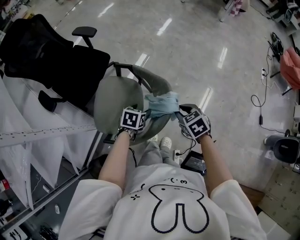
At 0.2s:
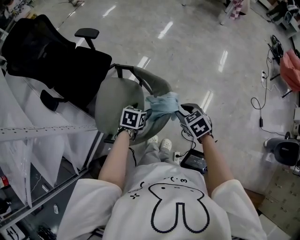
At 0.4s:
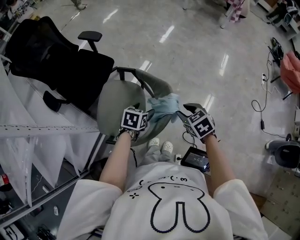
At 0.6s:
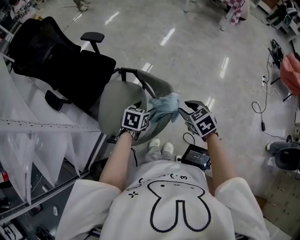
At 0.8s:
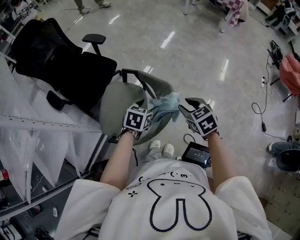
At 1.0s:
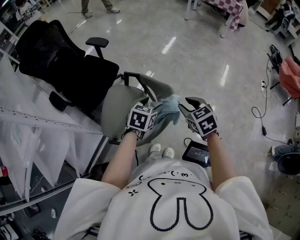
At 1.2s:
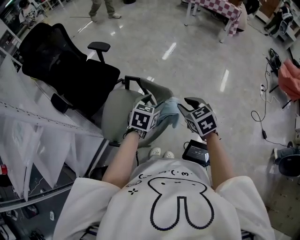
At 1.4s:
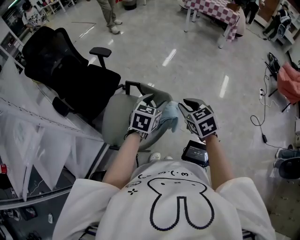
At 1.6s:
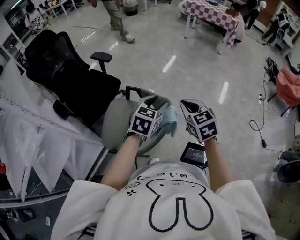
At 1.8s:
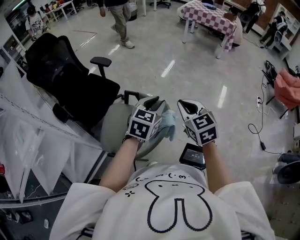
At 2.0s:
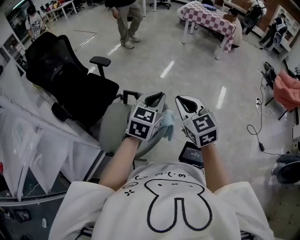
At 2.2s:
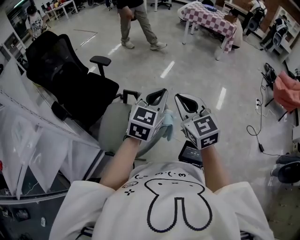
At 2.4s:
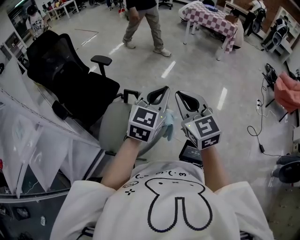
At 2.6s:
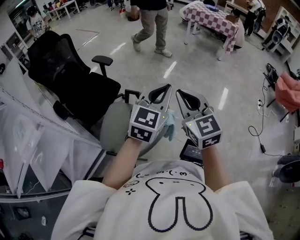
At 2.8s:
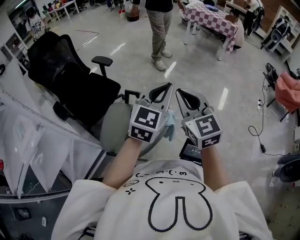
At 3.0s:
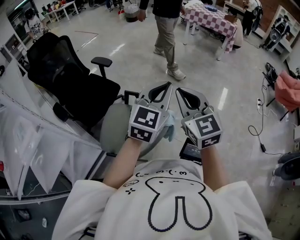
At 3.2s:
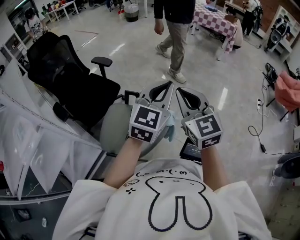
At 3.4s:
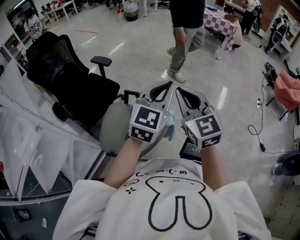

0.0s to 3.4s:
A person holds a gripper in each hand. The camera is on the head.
0.0s to 1.6s: The grippers both shift upward by approximately 20 cm. The left gripper changes its angle by approximately 30 degrees. The right gripper swivels roughly 30 degrees.
1.6s to 3.4s: The two grippers go some 15 cm upward. The right gripper turns by some 30 degrees, while the left gripper rotates some 30 degrees, and closes up.

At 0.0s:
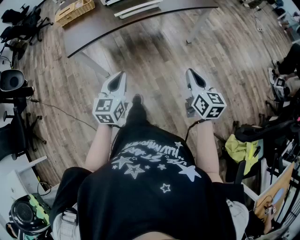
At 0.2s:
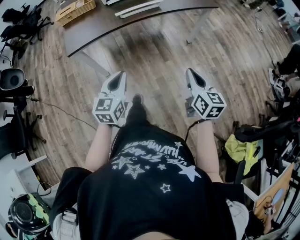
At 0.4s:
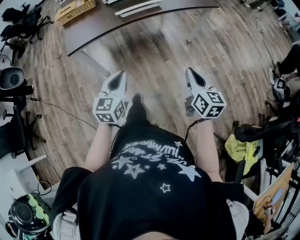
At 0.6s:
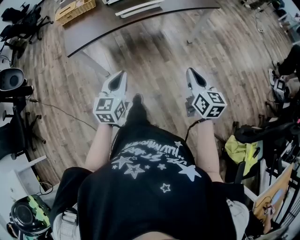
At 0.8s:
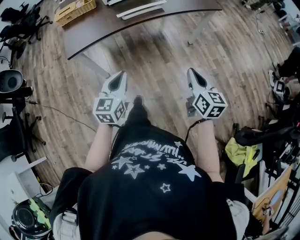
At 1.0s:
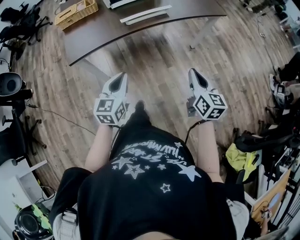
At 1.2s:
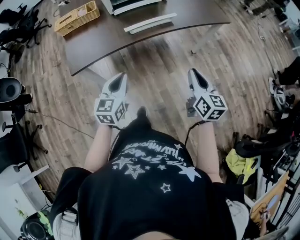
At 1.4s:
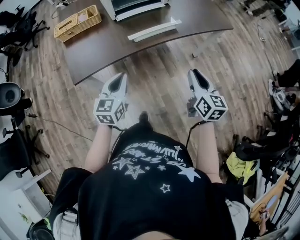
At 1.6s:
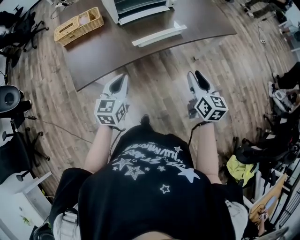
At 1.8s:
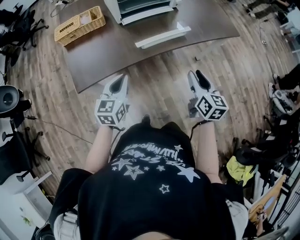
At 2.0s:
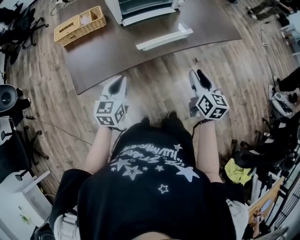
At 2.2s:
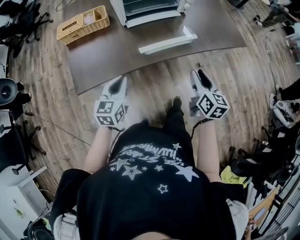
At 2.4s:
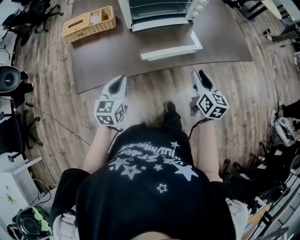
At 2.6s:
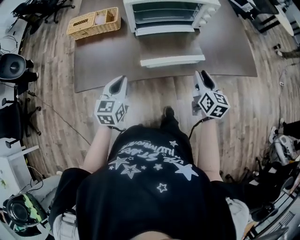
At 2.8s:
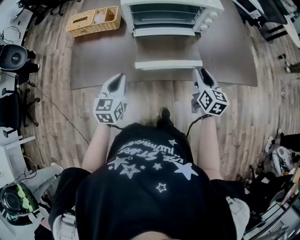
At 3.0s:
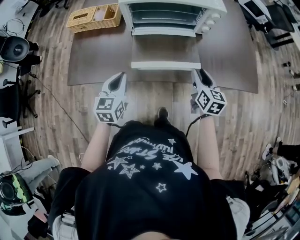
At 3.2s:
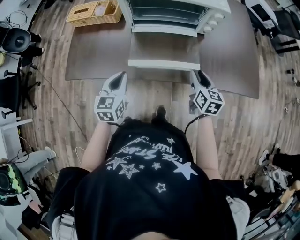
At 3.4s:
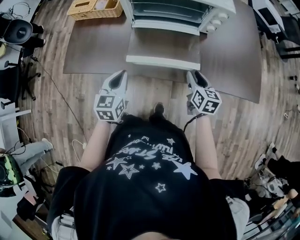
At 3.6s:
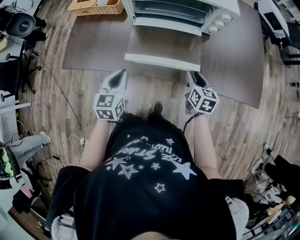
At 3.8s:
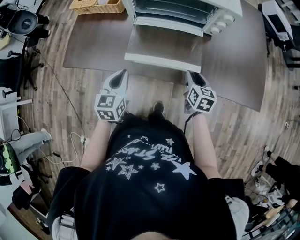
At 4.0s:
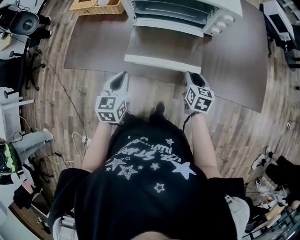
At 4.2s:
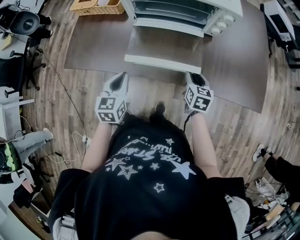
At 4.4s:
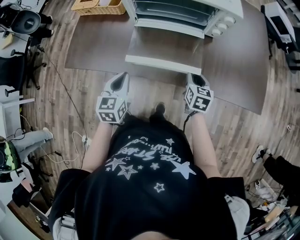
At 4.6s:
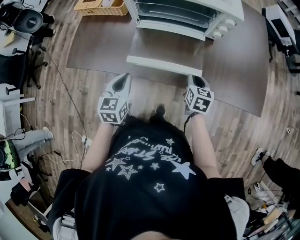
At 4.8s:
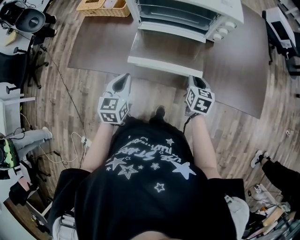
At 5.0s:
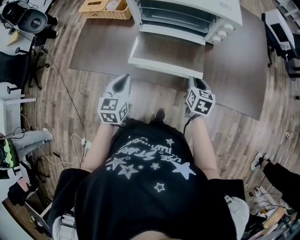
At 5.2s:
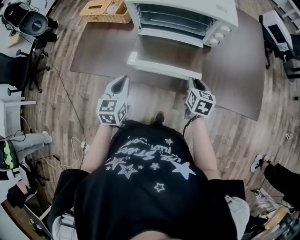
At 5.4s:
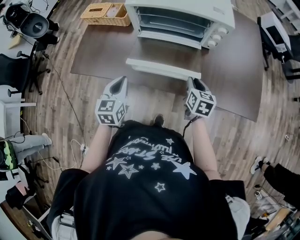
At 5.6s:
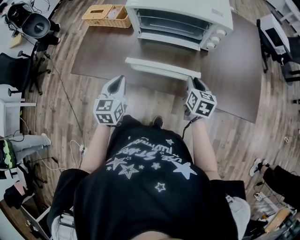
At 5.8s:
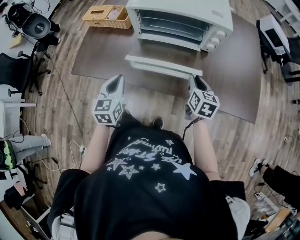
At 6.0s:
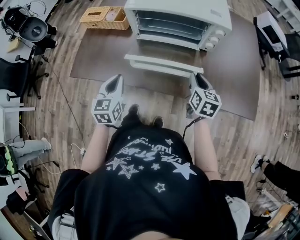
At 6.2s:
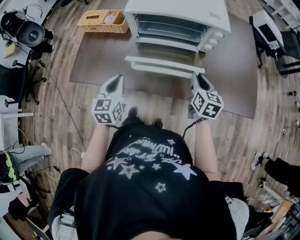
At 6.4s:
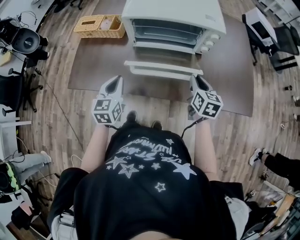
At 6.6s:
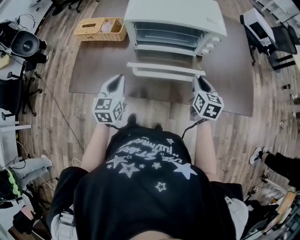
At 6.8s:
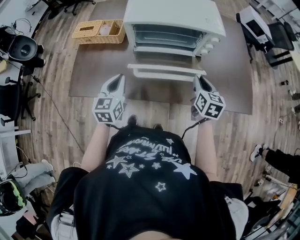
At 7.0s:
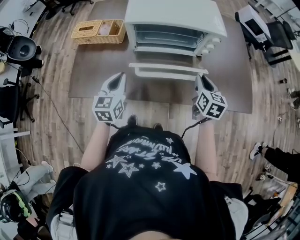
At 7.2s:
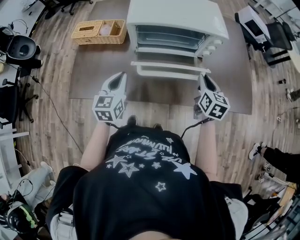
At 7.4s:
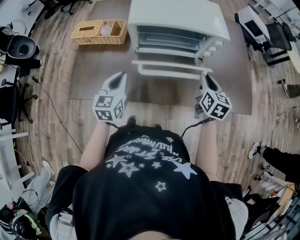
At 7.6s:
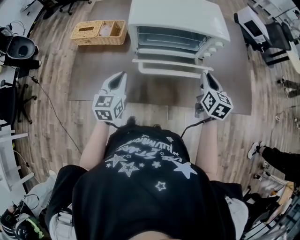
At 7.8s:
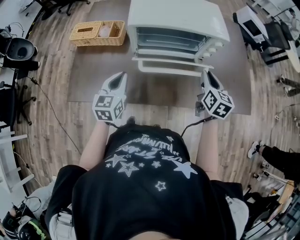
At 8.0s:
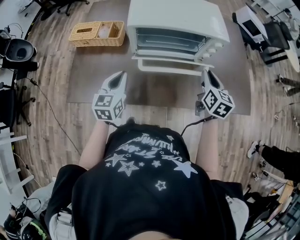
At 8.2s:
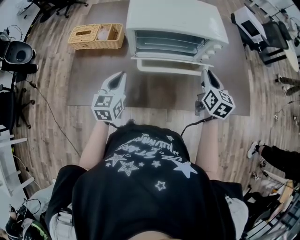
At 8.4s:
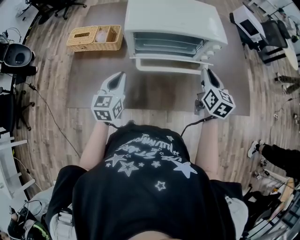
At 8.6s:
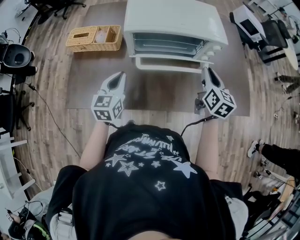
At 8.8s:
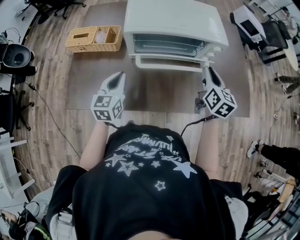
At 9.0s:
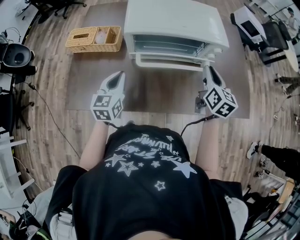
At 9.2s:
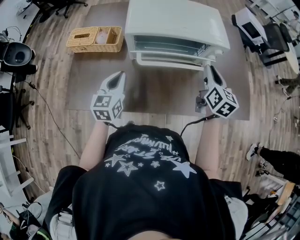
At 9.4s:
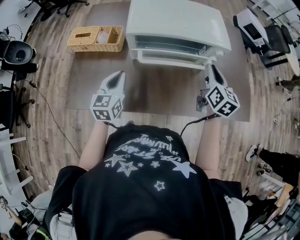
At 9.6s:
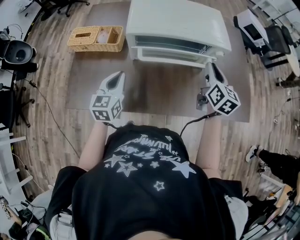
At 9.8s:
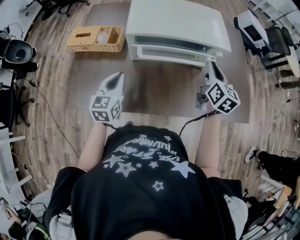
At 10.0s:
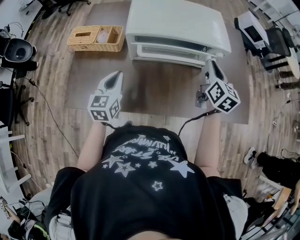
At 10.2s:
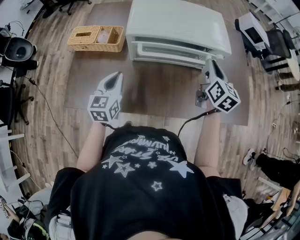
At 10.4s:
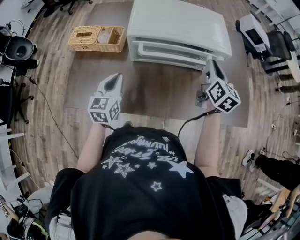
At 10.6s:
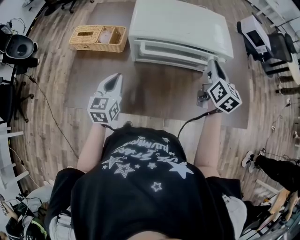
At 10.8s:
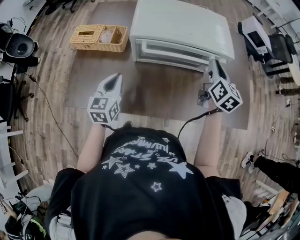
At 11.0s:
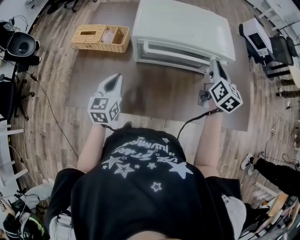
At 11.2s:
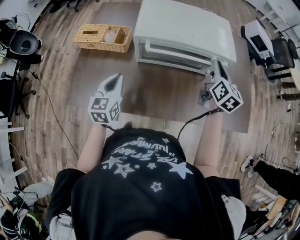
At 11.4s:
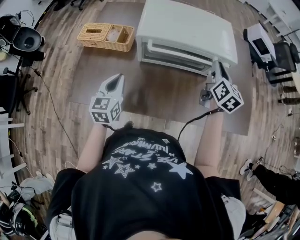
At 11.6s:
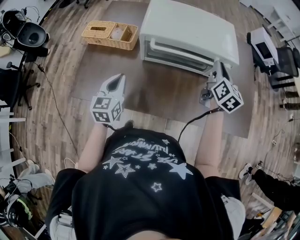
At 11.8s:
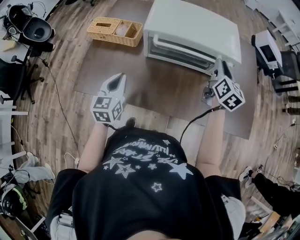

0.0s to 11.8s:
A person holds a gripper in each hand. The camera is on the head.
0.0s to 1.4s: Both grippers travel together forward and to the left, roughly 20 cm.
1.4s to 3.0s: The left gripper heads forward, covering approximately 20 cm, and rotates some 30 degrees. Meanwhile the right gripper is displaced forward by roughly 35 cm, and rotates about 20 degrees.
3.0s to 4.4s: The left gripper shifts by approximately 5 cm. Meanwhile the right gripper heads downward, covering some 10 cm.
4.4s to 6.0s: The left gripper goes roughly 5 cm upward; the right gripper goes roughly 10 cm upward.
6.0s to 7.4s: The left gripper goes approximately 10 cm forward; the right gripper shifts by roughly 5 cm.
7.4s to 8.8s: The right gripper is displaced forward by some 5 cm.
8.8s to 10.4s: The right gripper travels forward by about 5 cm.
10.4s to 11.8s: The left gripper moves backward, about 5 cm.

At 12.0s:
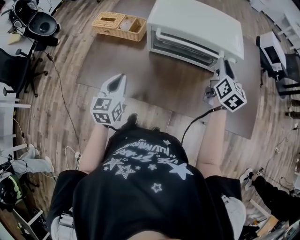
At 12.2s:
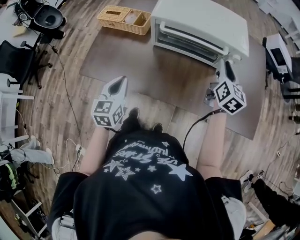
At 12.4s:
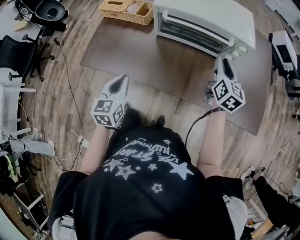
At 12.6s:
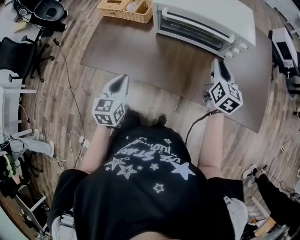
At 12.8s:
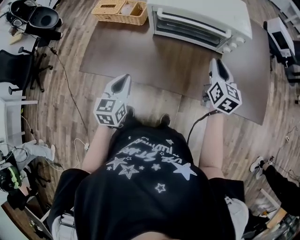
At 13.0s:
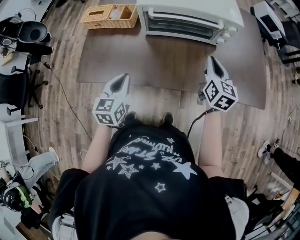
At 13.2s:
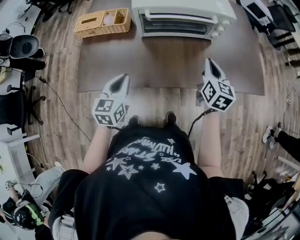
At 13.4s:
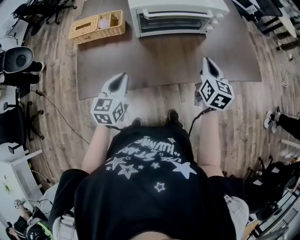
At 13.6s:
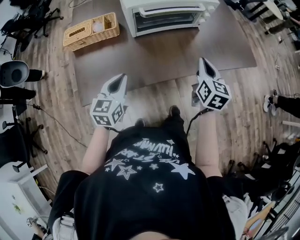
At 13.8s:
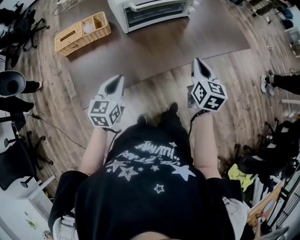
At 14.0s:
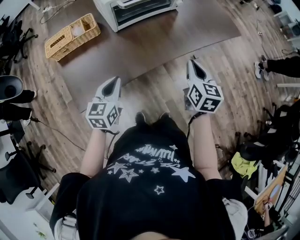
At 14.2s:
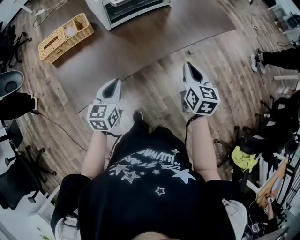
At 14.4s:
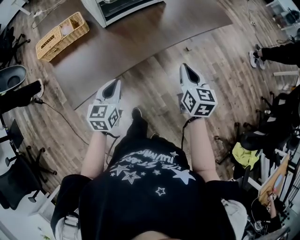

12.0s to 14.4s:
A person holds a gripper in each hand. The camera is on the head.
12.0s to 13.2s: The right gripper is displaced backward, downward and to the left by about 15 cm, and closes.
13.2s to 14.4s: The left gripper changes place by about 10 cm, and rotates roughly 30 degrees, while the right gripper moves approximately 25 cm, and swivels approximately 20 degrees.

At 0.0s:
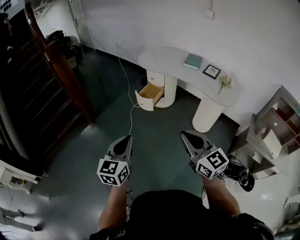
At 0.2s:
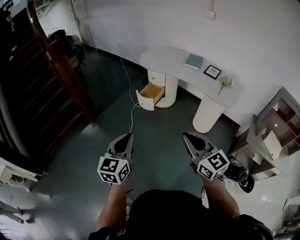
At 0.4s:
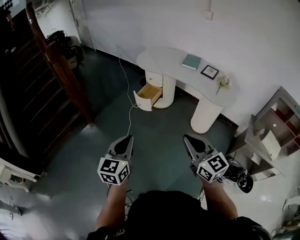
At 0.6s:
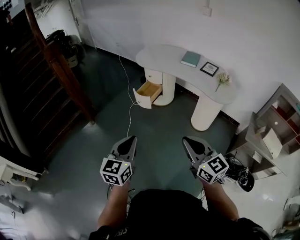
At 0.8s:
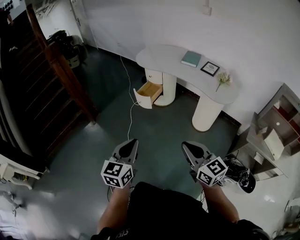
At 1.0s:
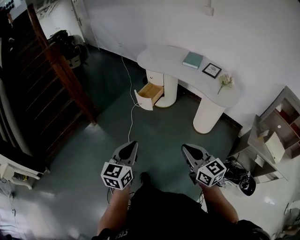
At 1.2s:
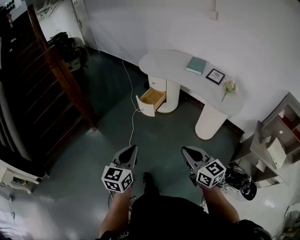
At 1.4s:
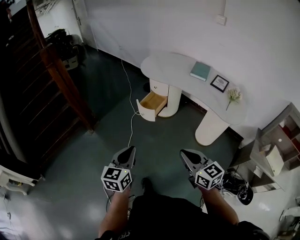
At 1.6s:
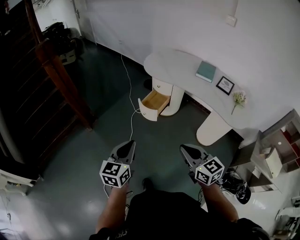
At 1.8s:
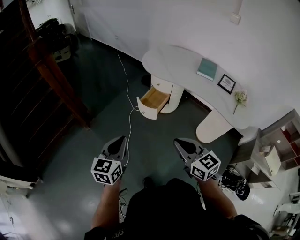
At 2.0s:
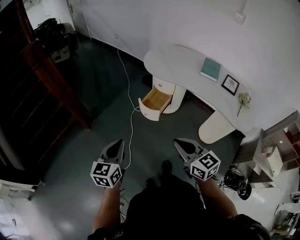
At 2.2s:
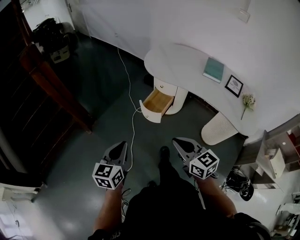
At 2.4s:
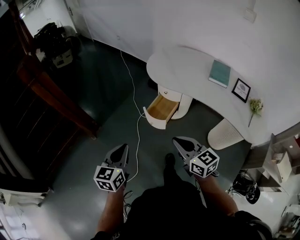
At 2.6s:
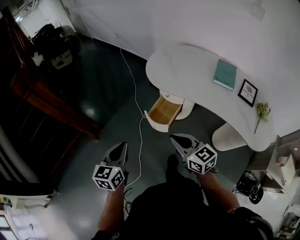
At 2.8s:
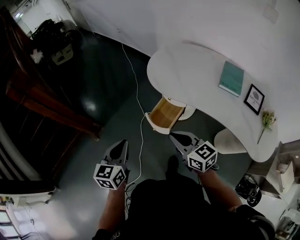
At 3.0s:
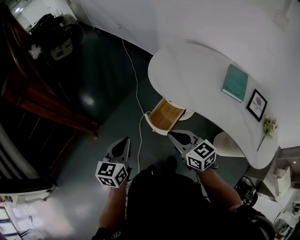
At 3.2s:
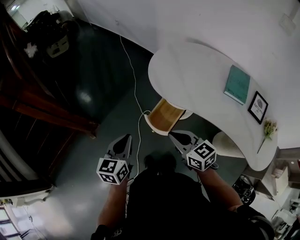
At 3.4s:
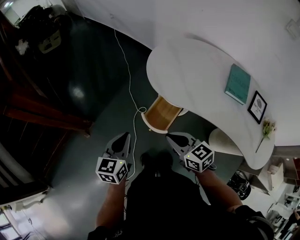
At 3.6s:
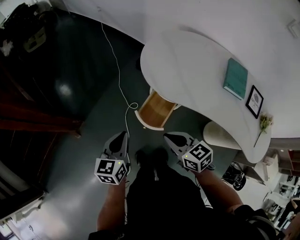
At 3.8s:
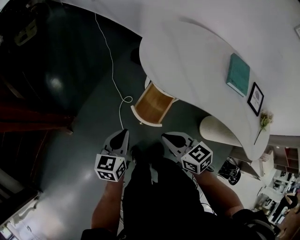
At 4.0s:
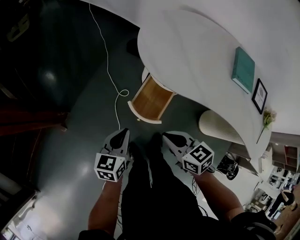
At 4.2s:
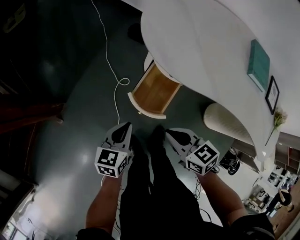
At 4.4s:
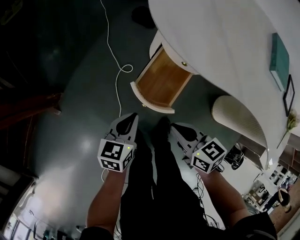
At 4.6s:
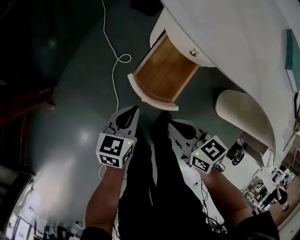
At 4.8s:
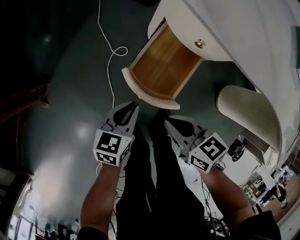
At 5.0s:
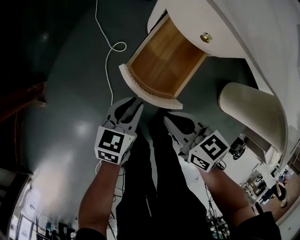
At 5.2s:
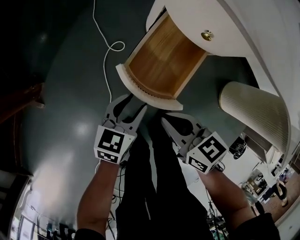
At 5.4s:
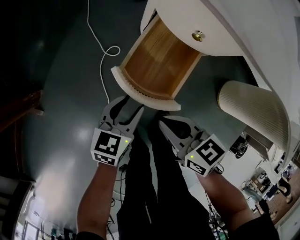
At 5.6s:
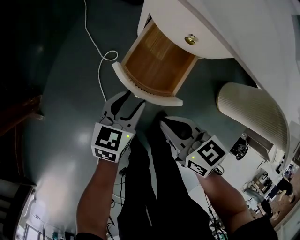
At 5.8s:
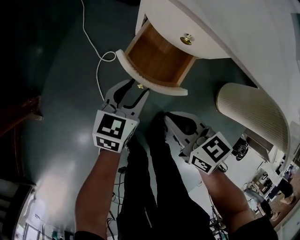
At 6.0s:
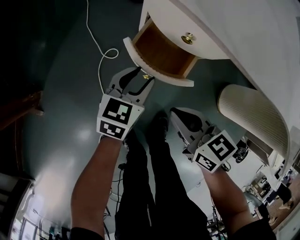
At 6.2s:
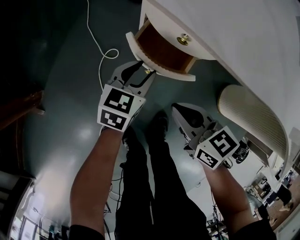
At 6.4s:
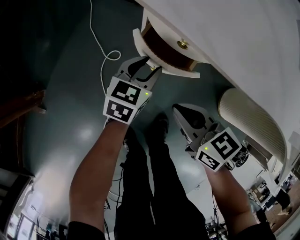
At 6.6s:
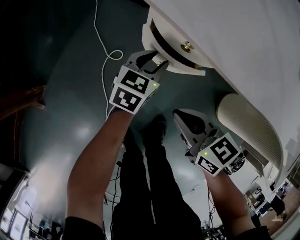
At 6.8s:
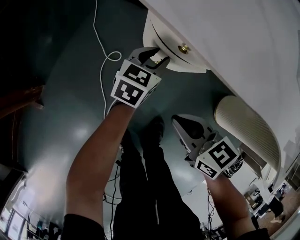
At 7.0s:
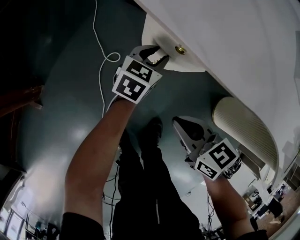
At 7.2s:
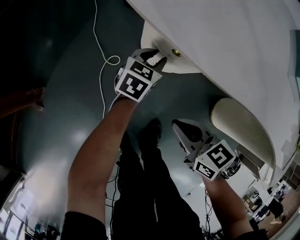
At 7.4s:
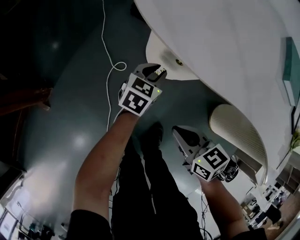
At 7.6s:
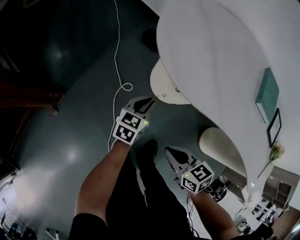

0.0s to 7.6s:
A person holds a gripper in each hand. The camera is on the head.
0.0s to 1.6s: The left gripper shifts approximately 20 cm forward, while the right gripper shifts approximately 20 cm forward and downward.
1.6s to 3.0s: The pair of grippers is taken forward, approximately 40 cm.
3.0s to 4.6s: Both grippers move downward, approximately 40 cm. The right gripper turns by some 30 degrees, while the left gripper turns by approximately 30 degrees.
4.6s to 6.0s: The left gripper is displaced to the right, forward and downward by roughly 15 cm, and opens; the right gripper goes roughly 10 cm downward and to the right.
6.0s to 7.6s: The left gripper goes approximately 15 cm upward, and closes; the right gripper goes about 15 cm upward and backward.
